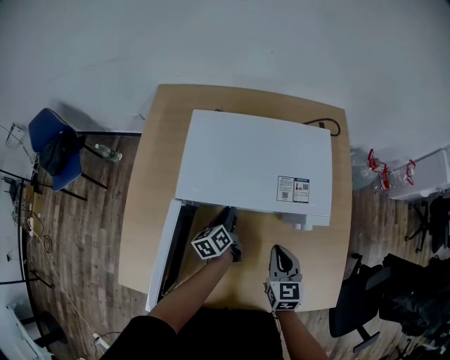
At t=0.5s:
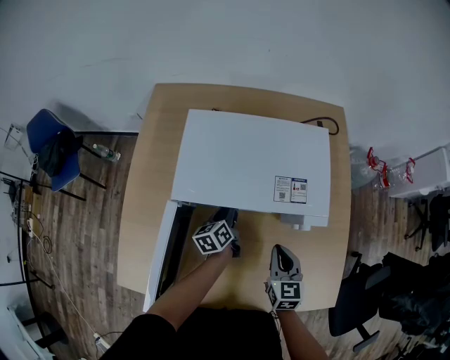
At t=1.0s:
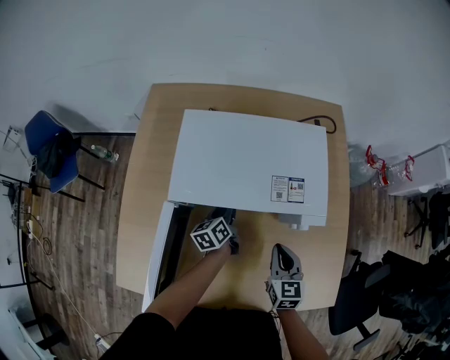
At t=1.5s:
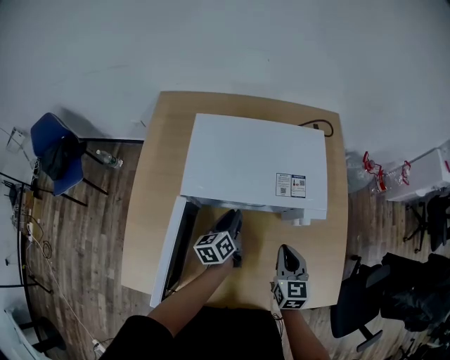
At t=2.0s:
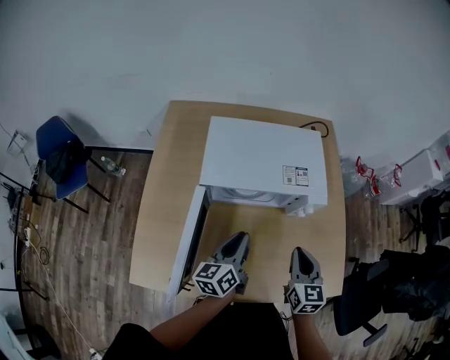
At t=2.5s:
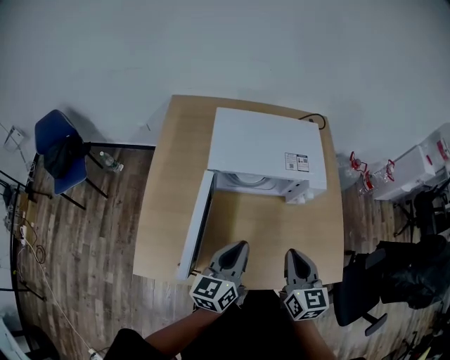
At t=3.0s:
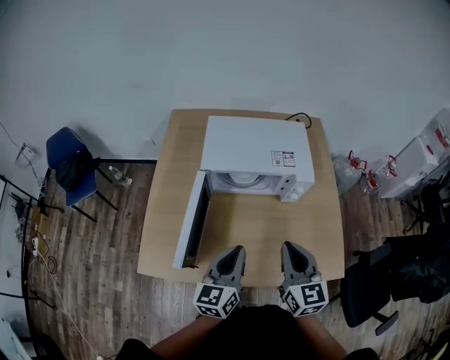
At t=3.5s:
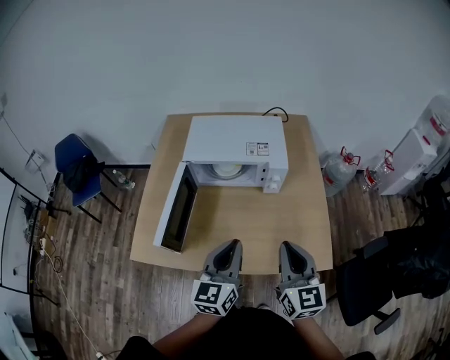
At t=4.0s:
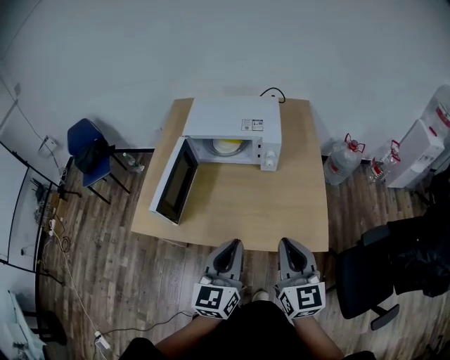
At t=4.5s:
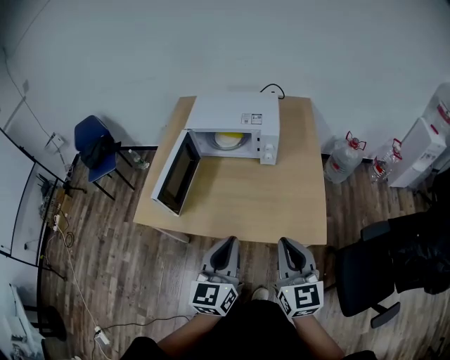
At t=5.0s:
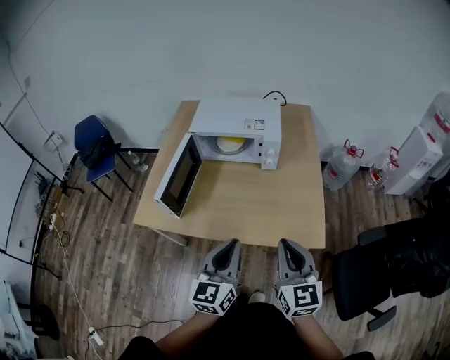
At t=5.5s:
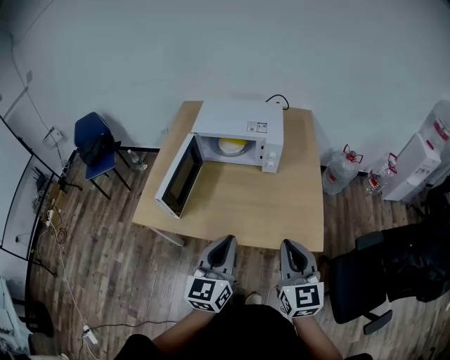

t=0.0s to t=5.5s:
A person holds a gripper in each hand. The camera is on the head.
t=0.0s to t=2.0s: The left gripper shifts roughly 20 cm upward and backward, and turns by approximately 20 degrees. Meanwhile the right gripper shifts roughly 10 cm upward and backward.
t=2.0s to t=3.5s: The right gripper is displaced backward and upward by approximately 20 cm, while the left gripper is displaced backward, upward and to the right by approximately 25 cm, and rotates about 30 degrees.
t=3.5s to t=5.5s: Both grippers move backward, roughly 15 cm.

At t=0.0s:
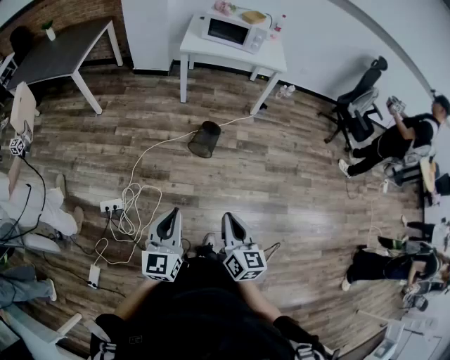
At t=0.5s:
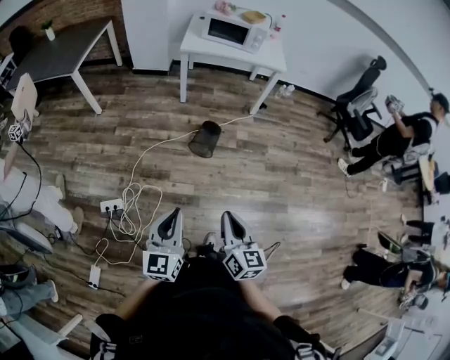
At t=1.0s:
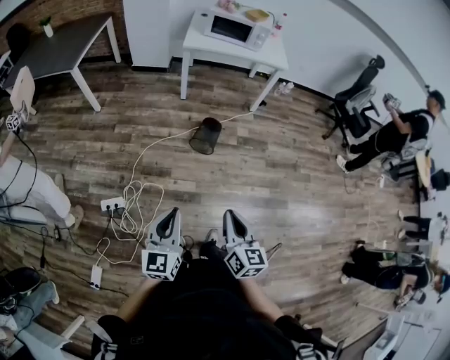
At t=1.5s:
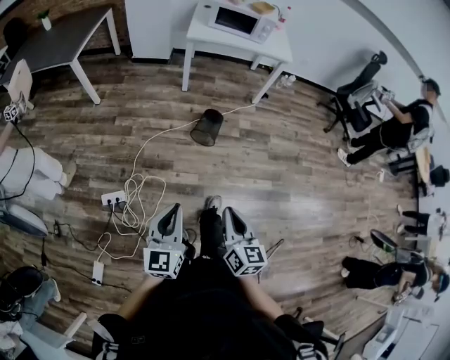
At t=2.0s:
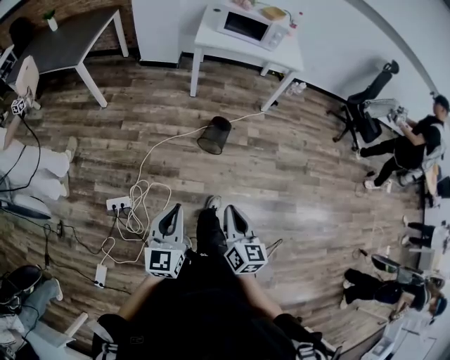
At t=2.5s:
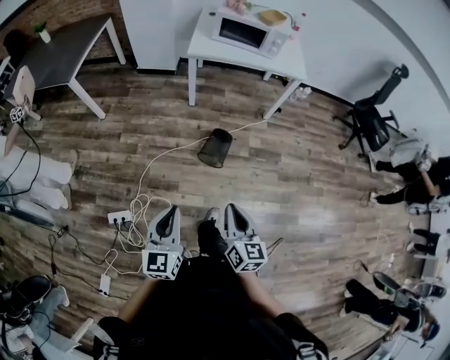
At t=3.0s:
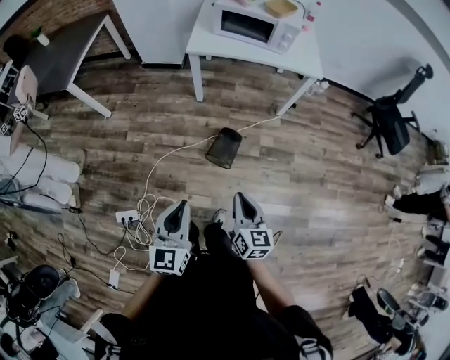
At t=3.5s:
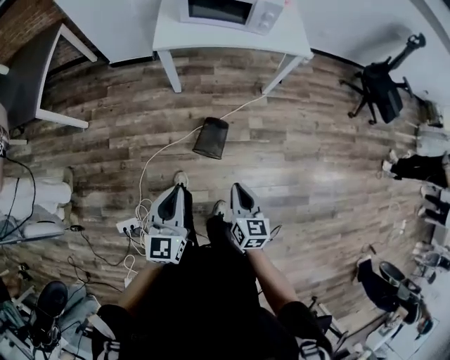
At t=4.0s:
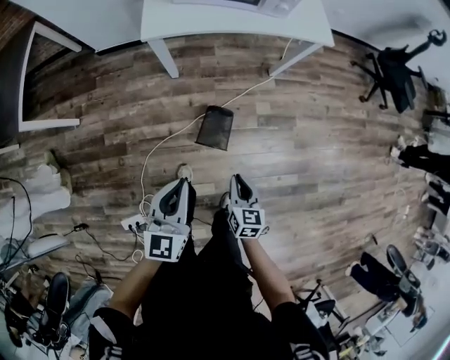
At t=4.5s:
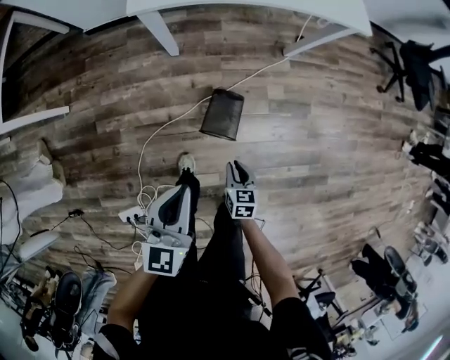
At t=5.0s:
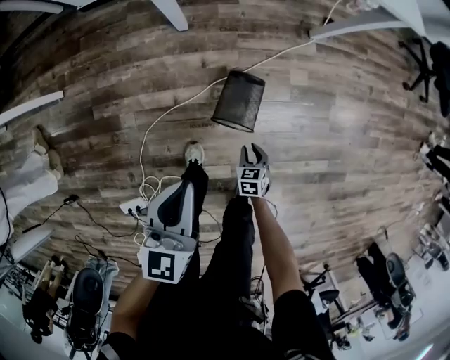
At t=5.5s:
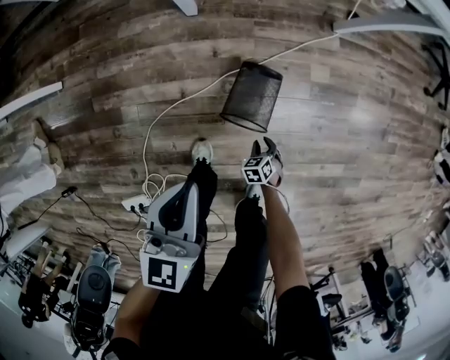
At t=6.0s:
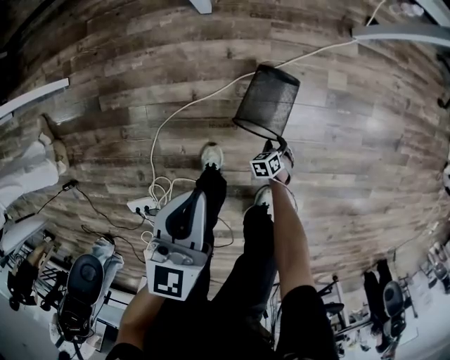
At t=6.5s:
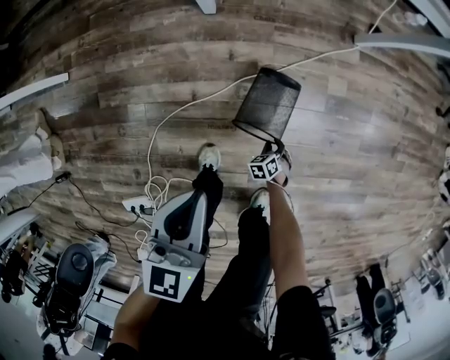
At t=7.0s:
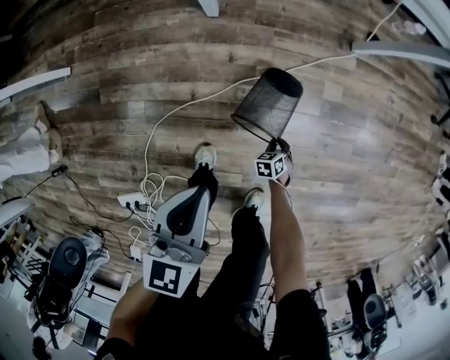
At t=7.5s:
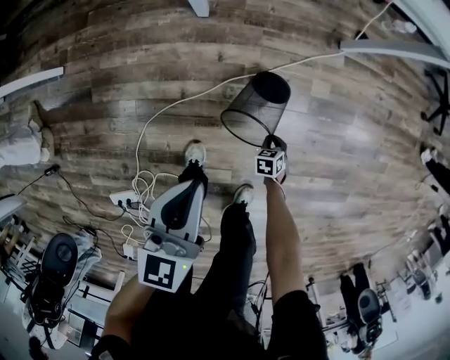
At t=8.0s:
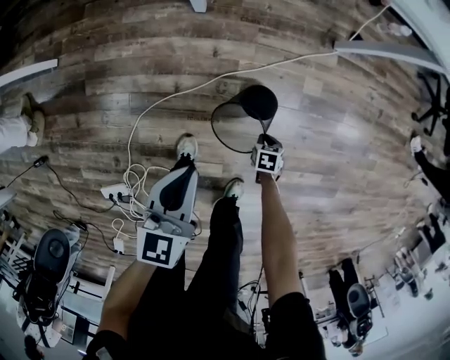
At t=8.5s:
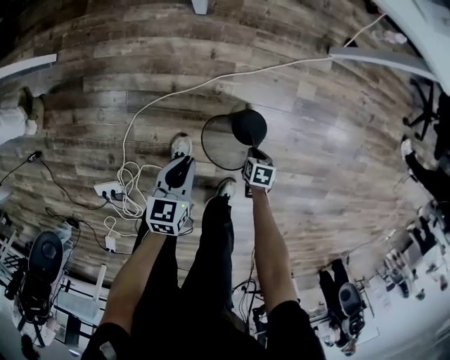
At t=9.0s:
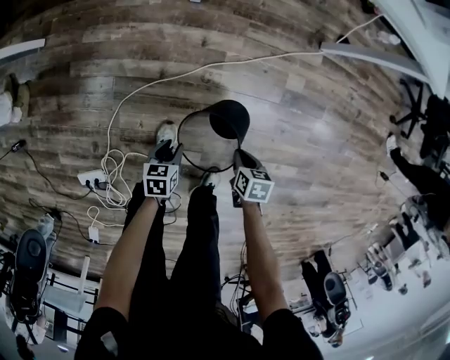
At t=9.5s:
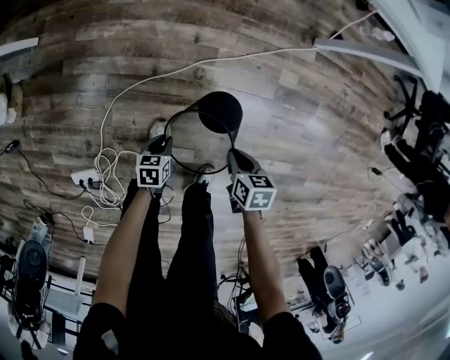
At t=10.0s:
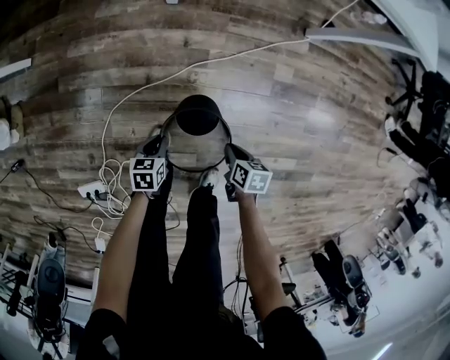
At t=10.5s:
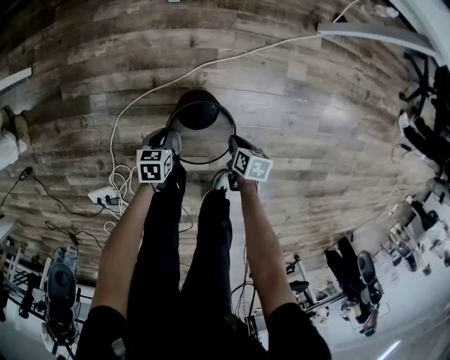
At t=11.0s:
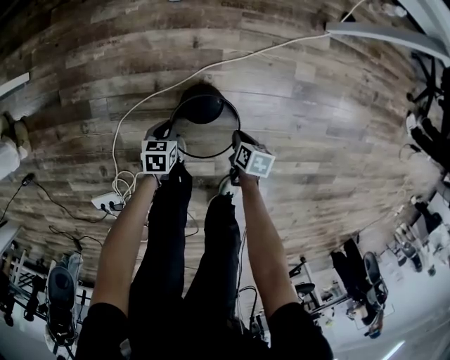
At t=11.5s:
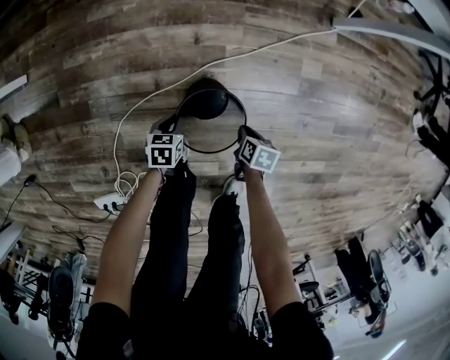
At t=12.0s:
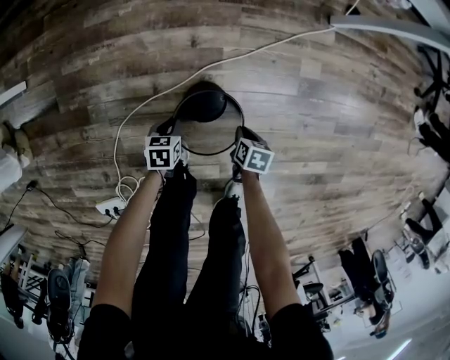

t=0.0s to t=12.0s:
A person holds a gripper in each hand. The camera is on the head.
t=0.0s to t=2.0s: The left gripper is displaced to the left by about 10 cm; the right gripper moves to the left and forward, roughly 10 cm.
t=2.0s to t=4.0s: The two grippers travel together, forward, about 50 cm. The right gripper travels downward by some 25 cm, and rotates about 20 degrees.
t=4.0s to t=6.0s: The left gripper goes about 30 cm downward. The right gripper goes about 60 cm downward, angles its fingers downward, by approximately 40 degrees, and opens up.
t=6.0s to t=8.0s: The right gripper is displaced upward by roughly 10 cm, changes its angle by some 30 degrees, and closes up.
t=8.0s to t=10.0s: The left gripper travels downward by approximately 25 cm, turns by approximately 30 degrees, and opens, then closes again; the right gripper shifts roughly 15 cm upward, and swivels about 30 degrees.
t=10.0s to t=12.0s: The left gripper moves downward and forward, approximately 20 cm. Meanwhile the right gripper moves downward, roughly 20 cm.

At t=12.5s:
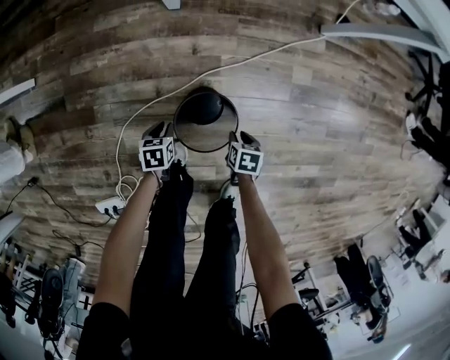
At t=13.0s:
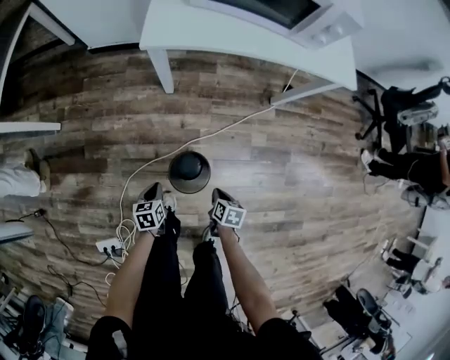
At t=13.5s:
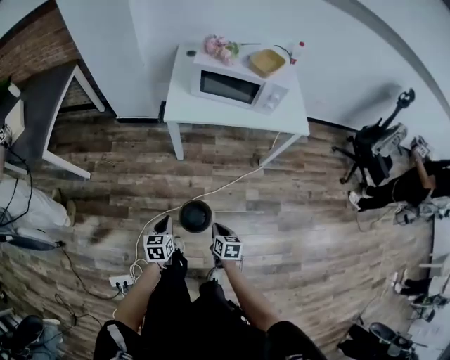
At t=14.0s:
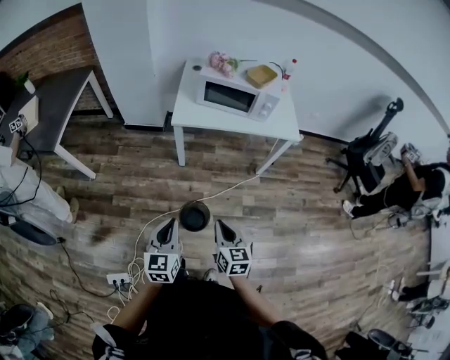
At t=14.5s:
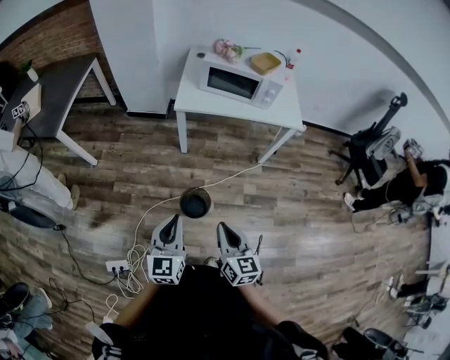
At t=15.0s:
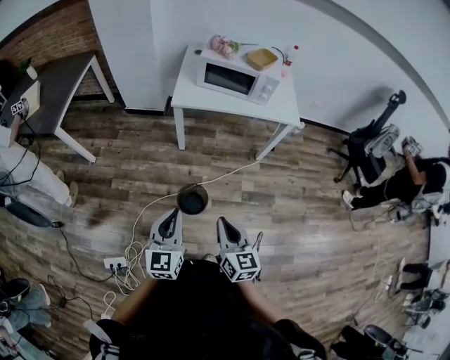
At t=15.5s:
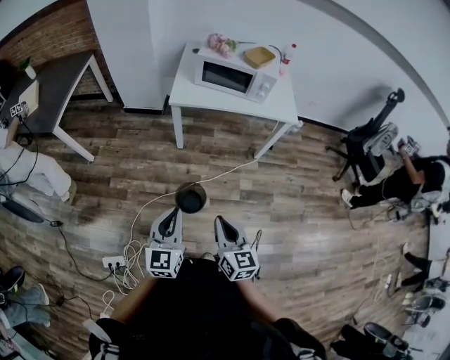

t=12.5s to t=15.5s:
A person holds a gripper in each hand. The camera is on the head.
t=12.5s to t=14.0s: Both grippers travel together upward, roughly 70 cm. The left gripper points its fingers approximately 50 degrees further upward, and closes its fingers; the right gripper points its fingers roughly 50 degrees further upward, and closes its fingers.
t=14.0s to t=15.5s: The left gripper goes about 5 cm backward, while the right gripper moves backward and upward, approximately 10 cm.

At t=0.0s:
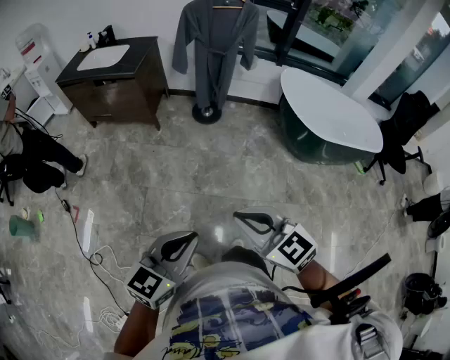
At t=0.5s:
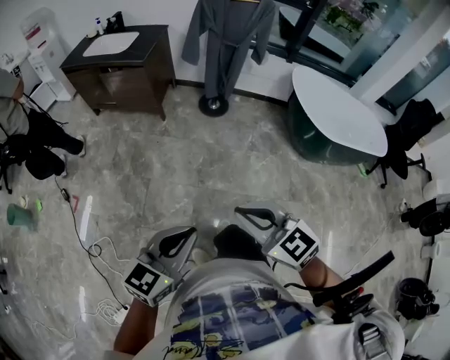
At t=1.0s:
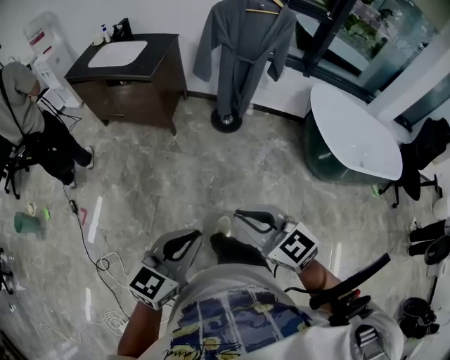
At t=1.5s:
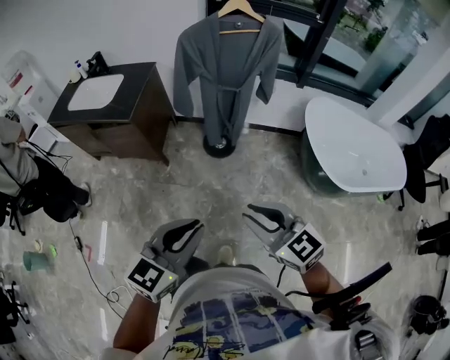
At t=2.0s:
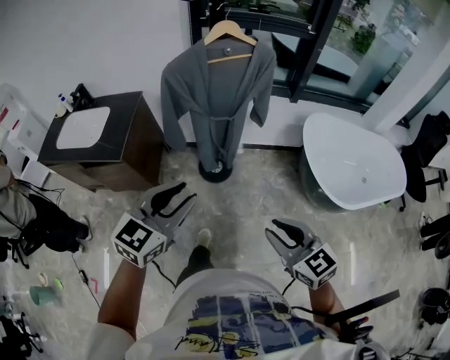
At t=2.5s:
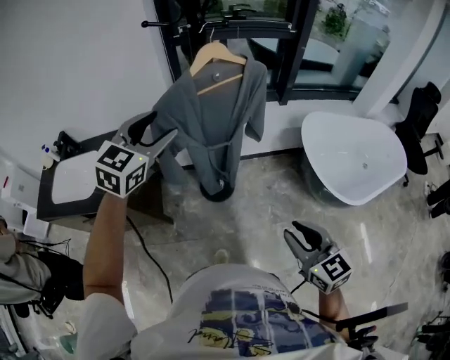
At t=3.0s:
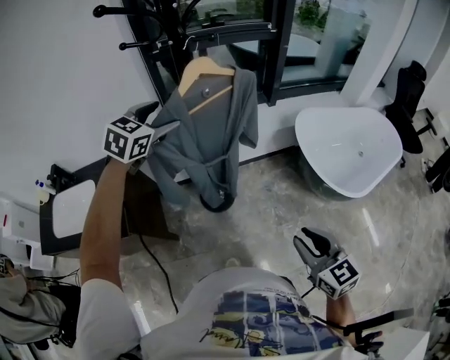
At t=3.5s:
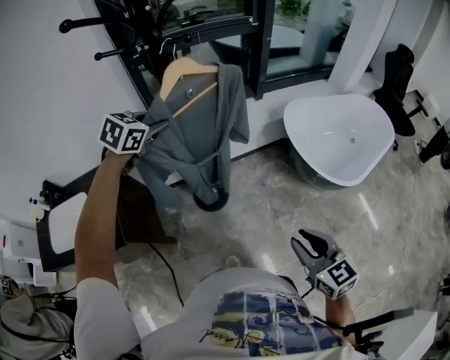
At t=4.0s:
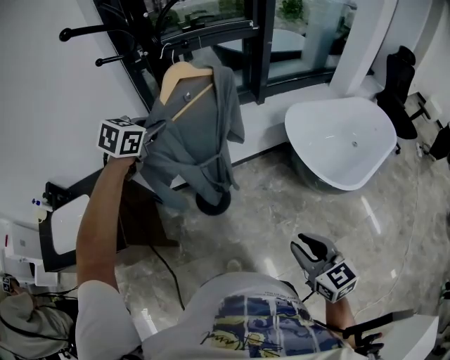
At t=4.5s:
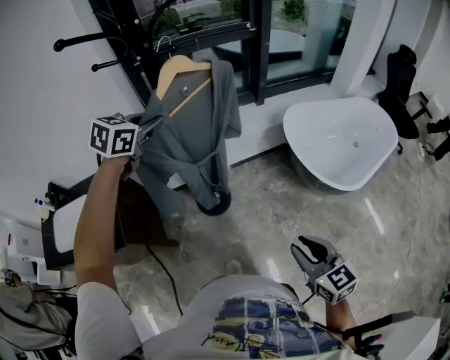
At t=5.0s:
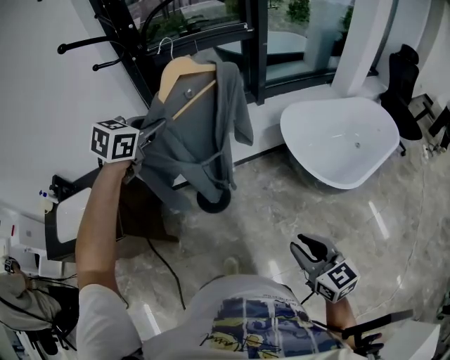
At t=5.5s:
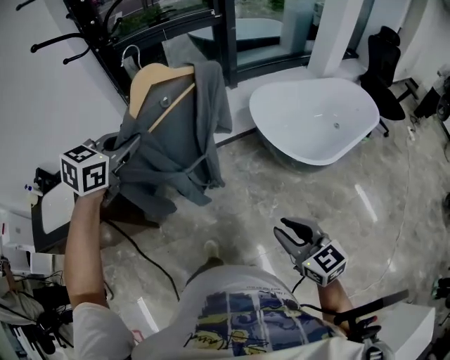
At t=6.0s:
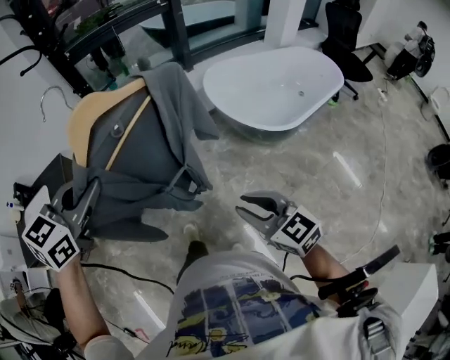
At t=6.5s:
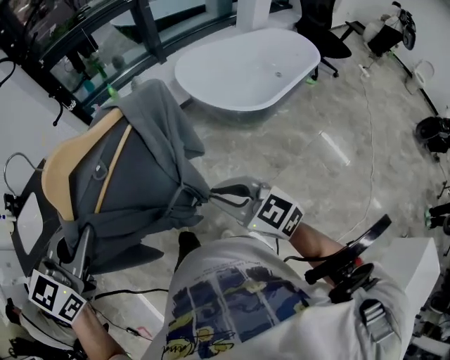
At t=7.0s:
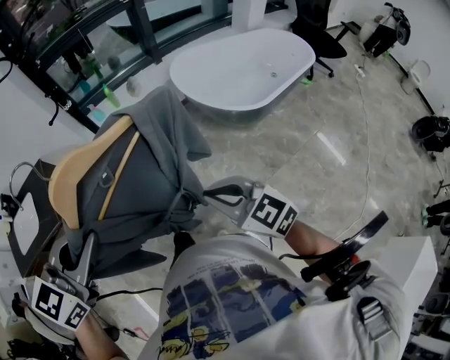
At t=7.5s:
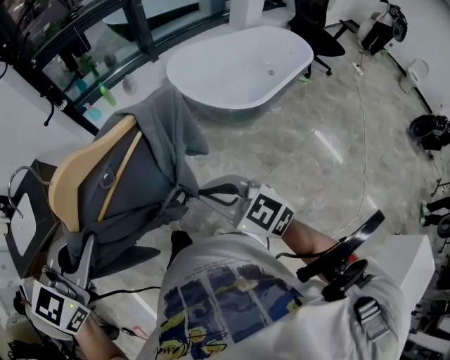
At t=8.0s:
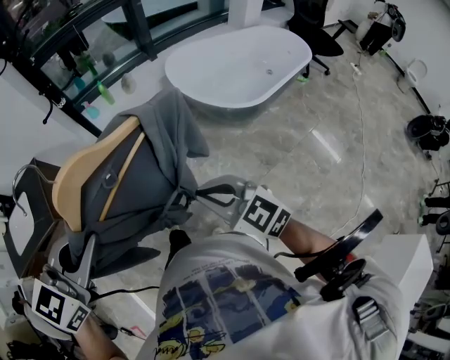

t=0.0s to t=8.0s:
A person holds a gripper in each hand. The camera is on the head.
t=0.0s to t=2.0s: Both grippers are carried forward, about 50 cm. The left gripper opens, while the right gripper rotates some 20 degrees, and opens its fingers.
t=2.0s to t=4.0s: The left gripper travels forward by approximately 40 cm, changes its angle by approximately 30 degrees, and closes up; the right gripper moves forward, some 10 cm, and rotates approximately 30 degrees.
t=4.0s to t=6.0s: The left gripper travels backward and to the right by about 40 cm. Meanwhile the right gripper shifts some 15 cm to the right and backward.
t=6.0s to t=8.0s: The left gripper travels backward by roughly 15 cm. Meanwhile the right gripper closes up.
